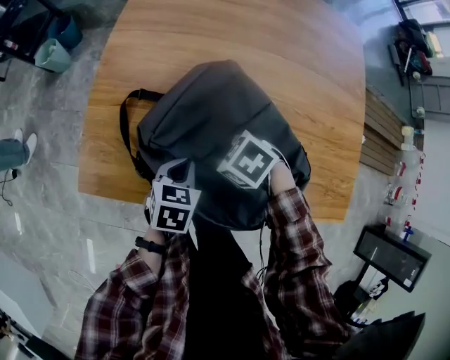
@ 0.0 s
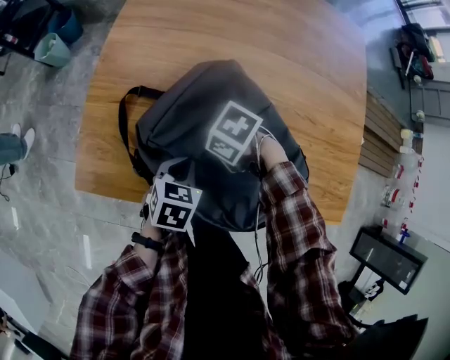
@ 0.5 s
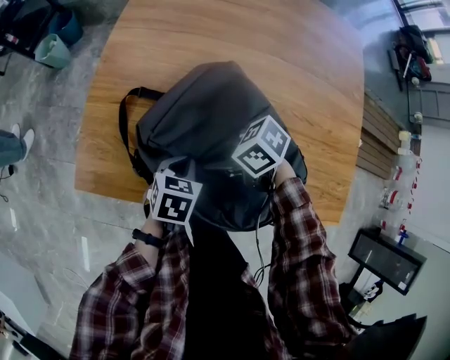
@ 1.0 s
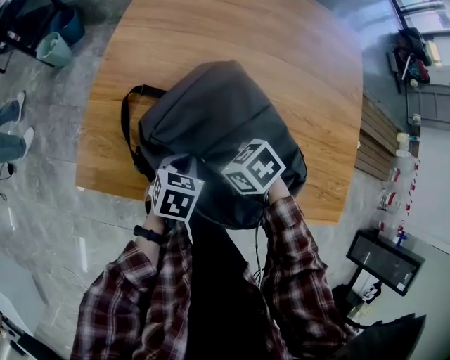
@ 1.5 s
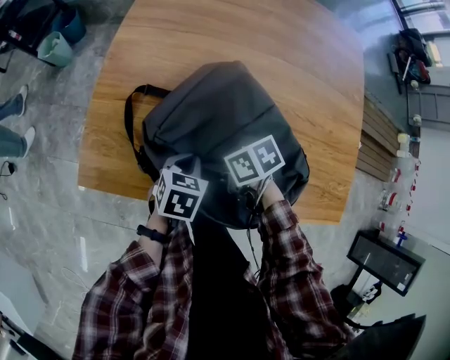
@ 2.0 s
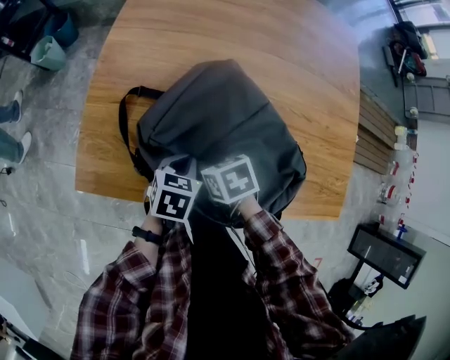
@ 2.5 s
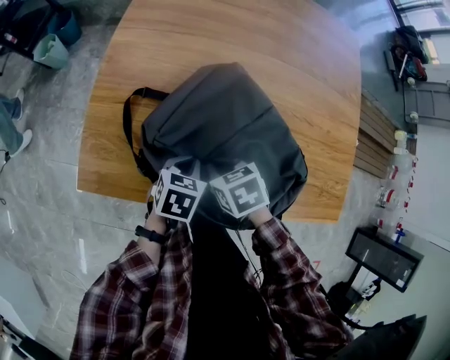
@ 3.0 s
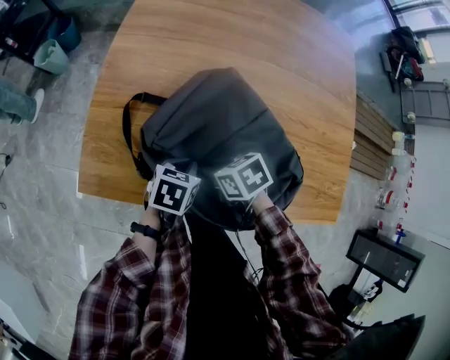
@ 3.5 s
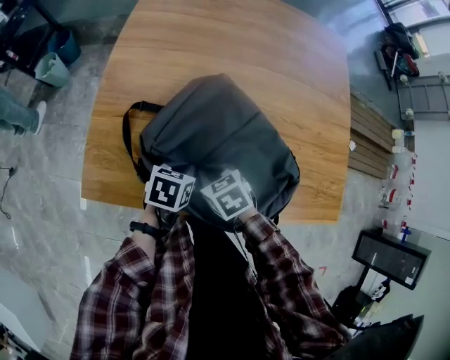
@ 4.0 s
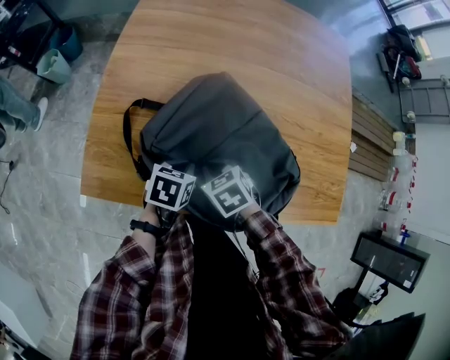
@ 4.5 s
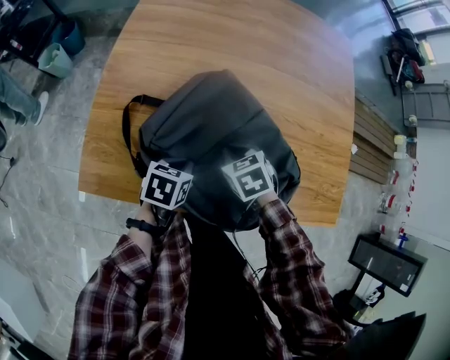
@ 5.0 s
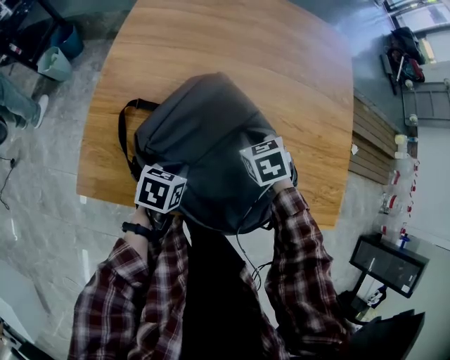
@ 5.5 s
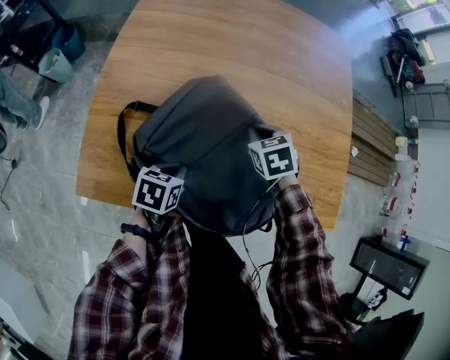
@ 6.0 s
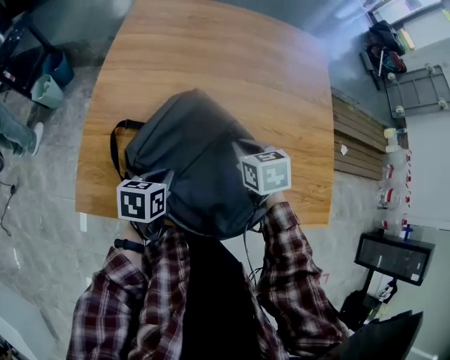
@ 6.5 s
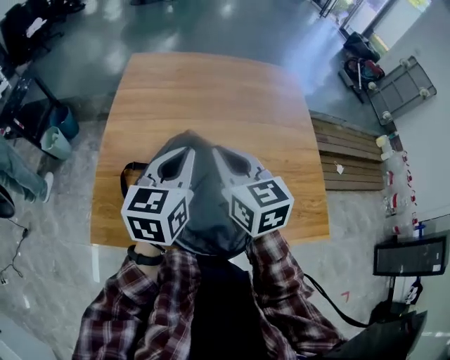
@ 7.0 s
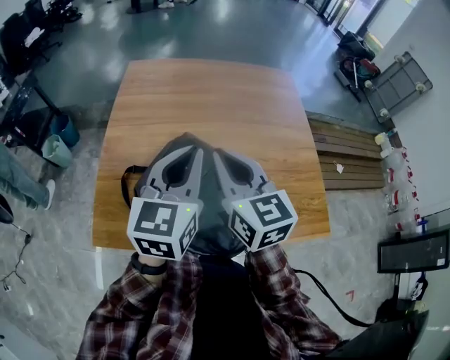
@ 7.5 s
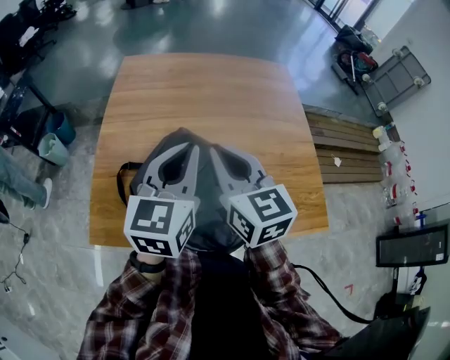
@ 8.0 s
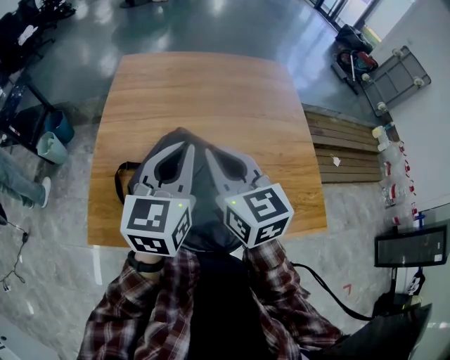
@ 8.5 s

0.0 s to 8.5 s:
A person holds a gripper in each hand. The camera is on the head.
0.0 to 2.0 s: The right gripper turns by approximately 40 degrees.
2.0 to 4.0 s: The right gripper rotates approximately 30 degrees.
4.0 to 6.5 s: The right gripper shifts roughly 20 cm to the right, forward and upward, and rotates about 20 degrees; the left gripper changes place by roughly 5 cm.
6.5 to 8.5 s: Both grippers travel together upward, roughly 25 cm. The right gripper tips its fingers upward by roughly 40 degrees. The left gripper tips its fingers upward by roughly 40 degrees.

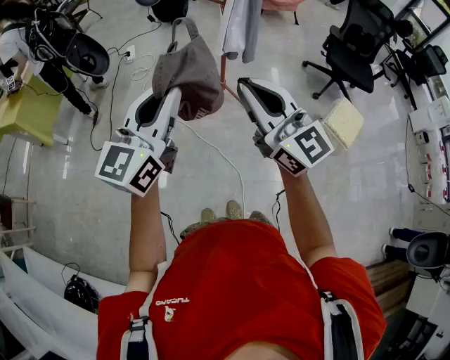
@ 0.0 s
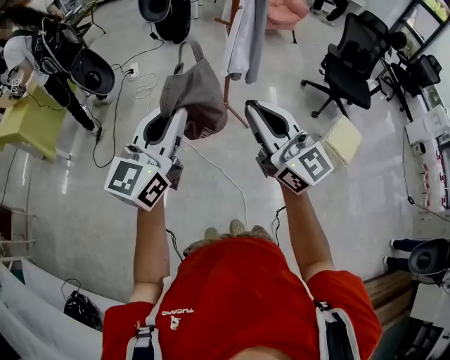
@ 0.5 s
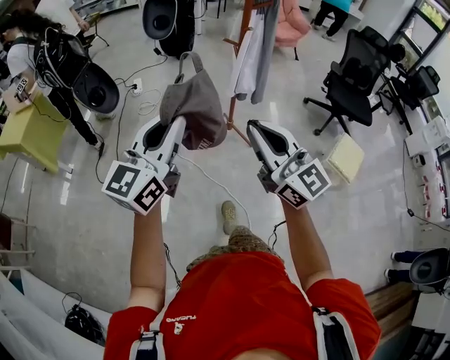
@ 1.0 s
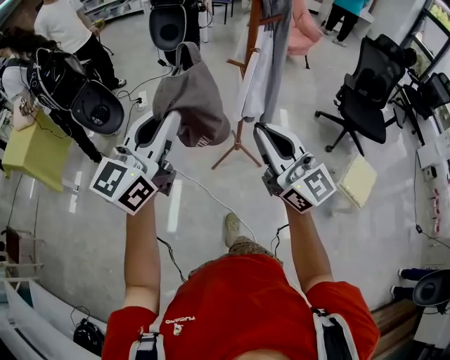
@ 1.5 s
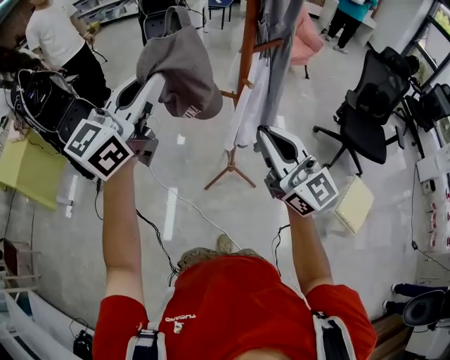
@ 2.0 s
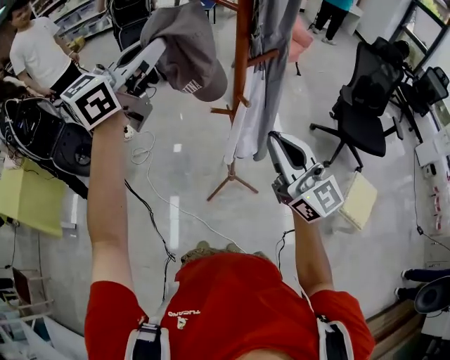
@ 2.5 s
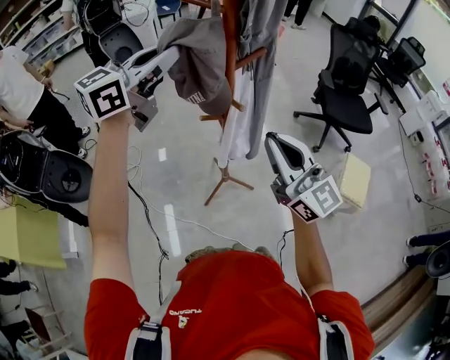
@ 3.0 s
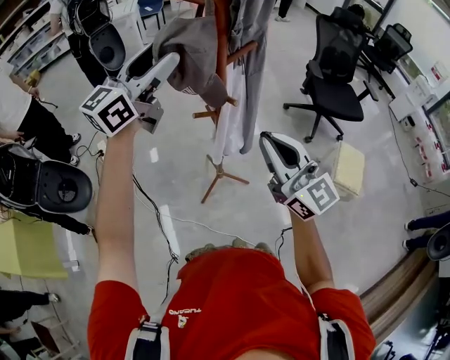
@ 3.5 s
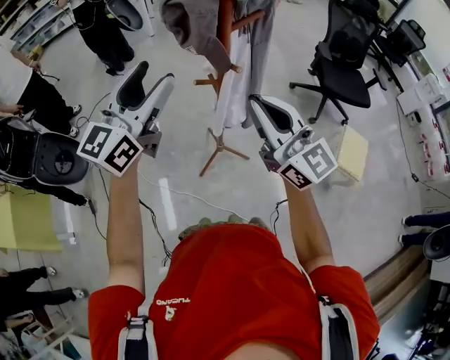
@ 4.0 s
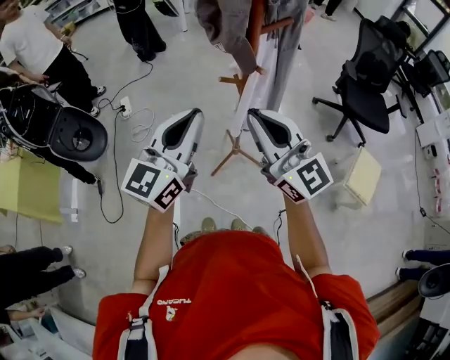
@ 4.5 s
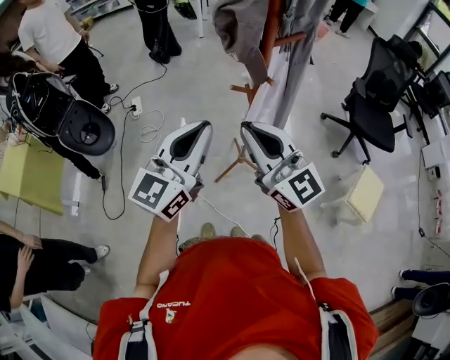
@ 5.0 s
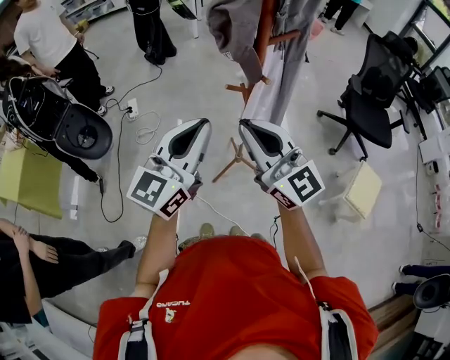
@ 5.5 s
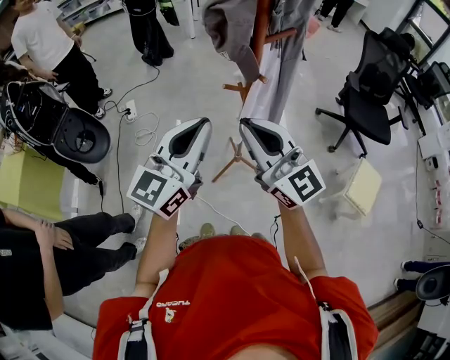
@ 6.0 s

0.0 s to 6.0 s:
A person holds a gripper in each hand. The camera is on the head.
0.0 to 2.0 s: The grippers both shift forward by approximately 40 cm.
2.0 to 4.0 s: The right gripper travels forward by about 5 cm; the left gripper heads forward and downward, covering roughly 15 cm, and opens.
4.0 to 6.0 s: The left gripper heads backward, covering approximately 10 cm, and closes. Meanwhile the right gripper moves to the left, some 5 cm.

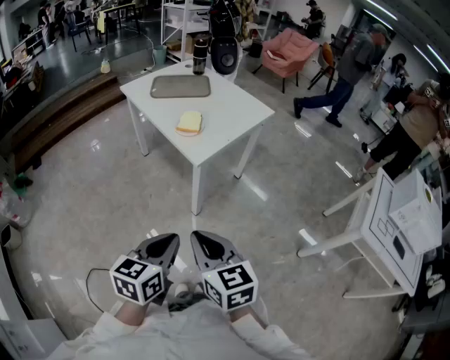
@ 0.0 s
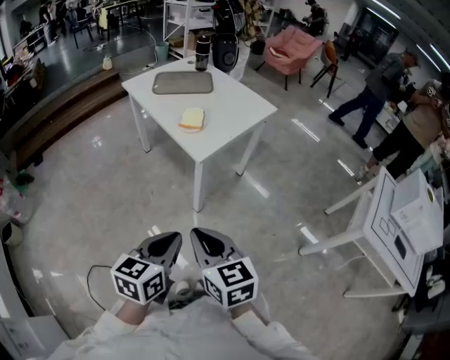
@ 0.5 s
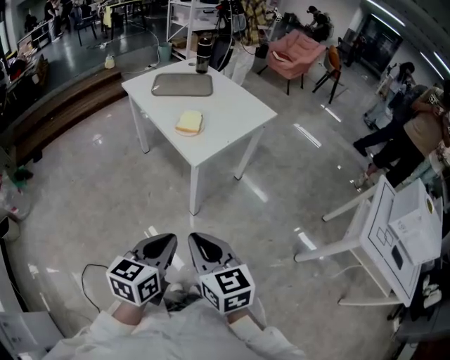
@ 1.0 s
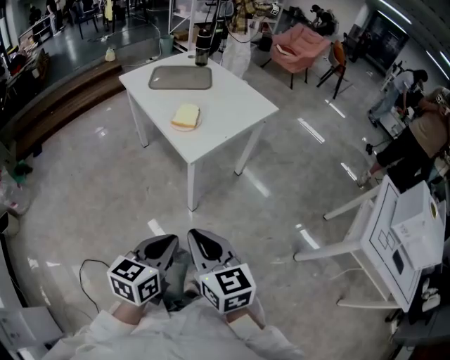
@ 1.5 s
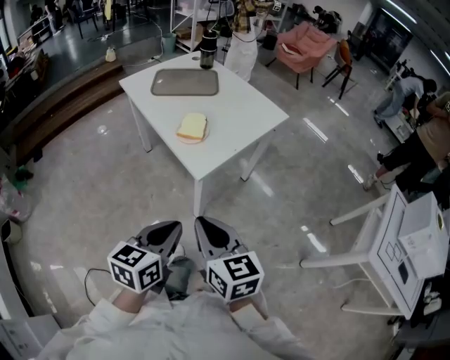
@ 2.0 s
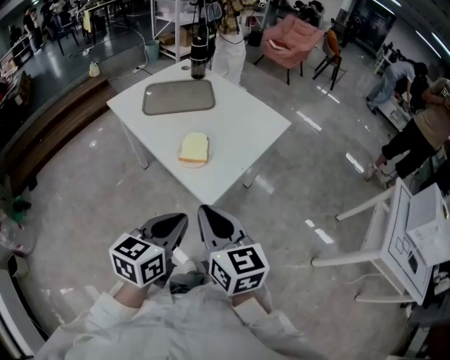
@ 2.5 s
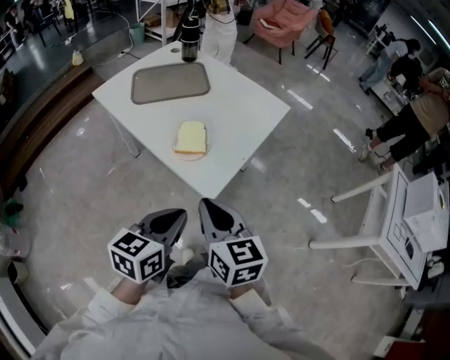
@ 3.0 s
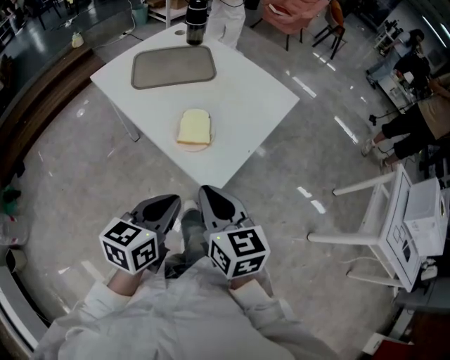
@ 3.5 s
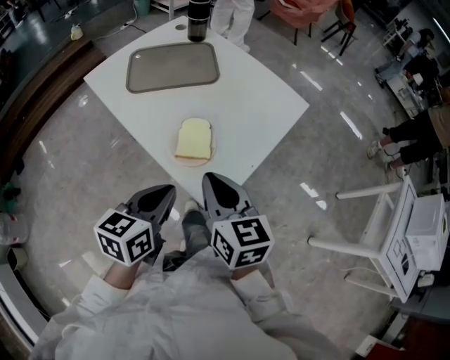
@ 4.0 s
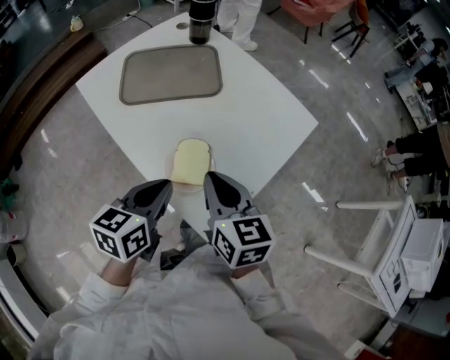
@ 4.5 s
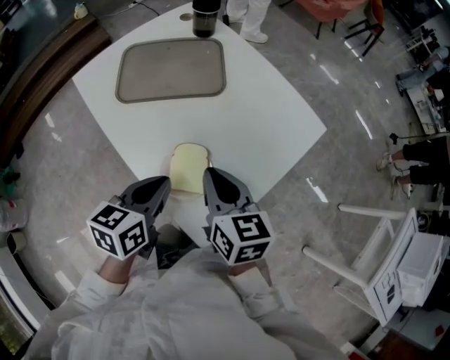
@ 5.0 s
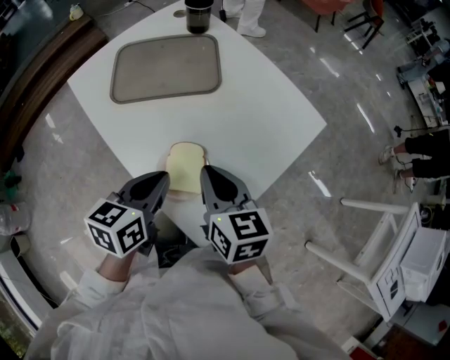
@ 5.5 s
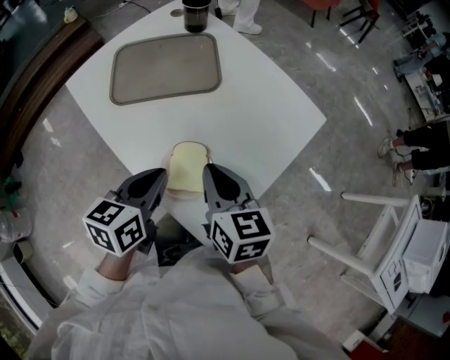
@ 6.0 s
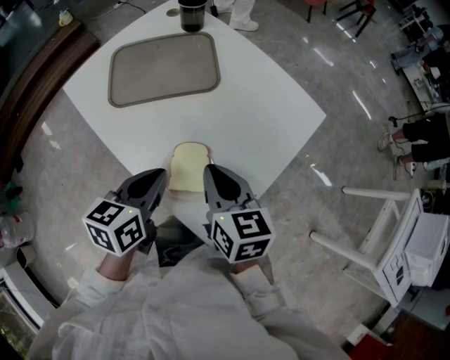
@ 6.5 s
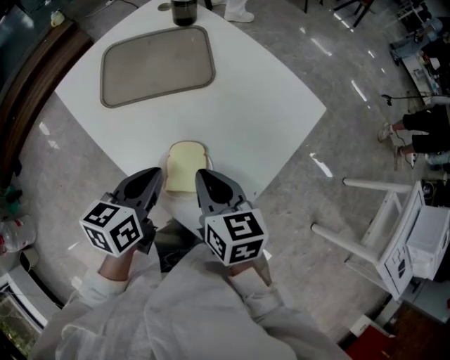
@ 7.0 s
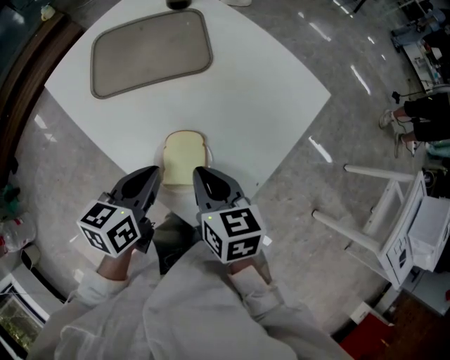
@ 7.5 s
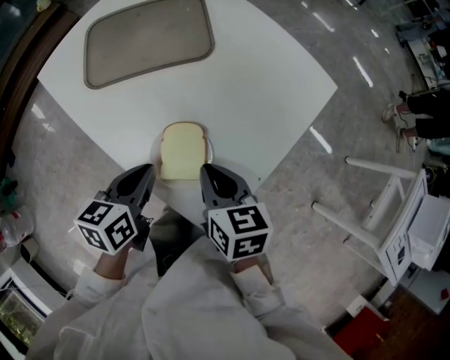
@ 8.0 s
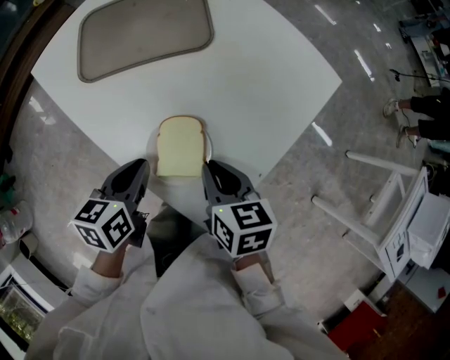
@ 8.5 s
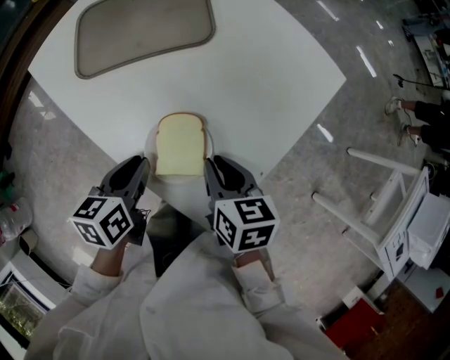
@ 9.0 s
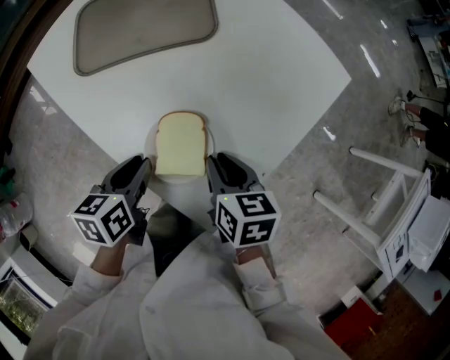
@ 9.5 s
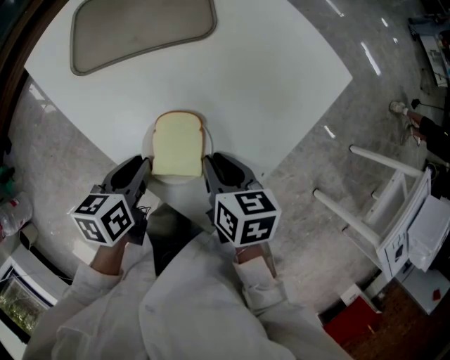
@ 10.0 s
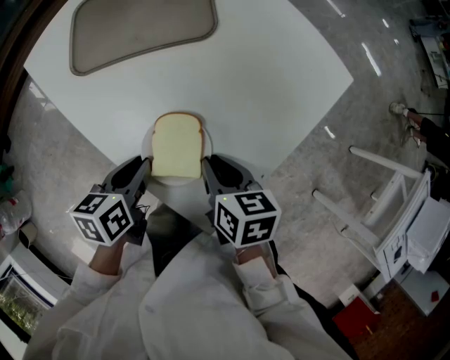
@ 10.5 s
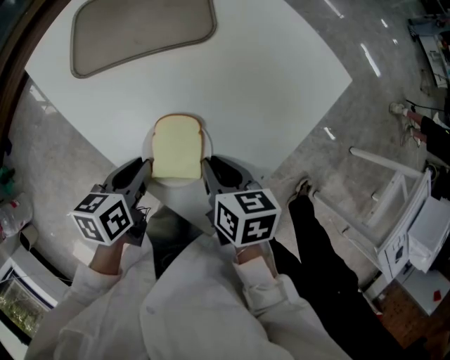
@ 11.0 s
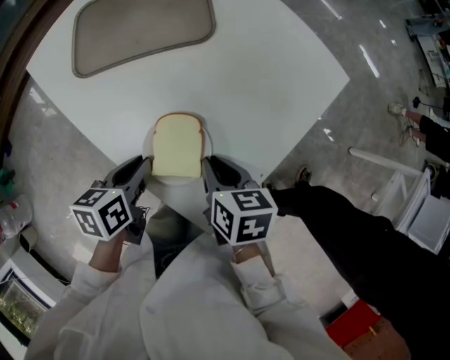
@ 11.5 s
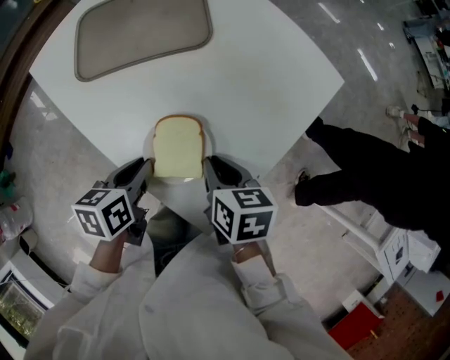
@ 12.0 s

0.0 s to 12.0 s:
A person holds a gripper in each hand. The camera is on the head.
0.0 to 2.0 s: Both grippers travel together forward, approximately 15 cm.
2.0 to 4.0 s: The left gripper is displaced forward and to the left by roughly 30 cm, while the right gripper goes roughly 30 cm forward.
4.0 to 6.0 s: The two grippers go about 15 cm forward.
6.0 to 8.0 s: The grippers both shift downward by roughly 10 cm.
8.0 to 10.0 s: Both grippers travel together downward, approximately 5 cm.
10.0 to 12.0 s: Both grippers stay about where they are.
